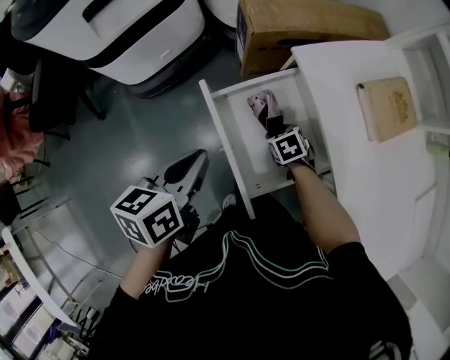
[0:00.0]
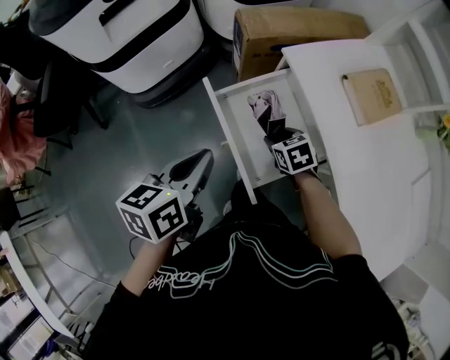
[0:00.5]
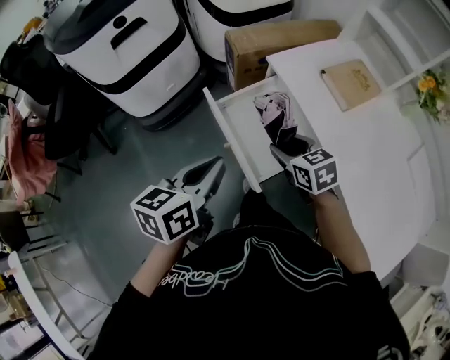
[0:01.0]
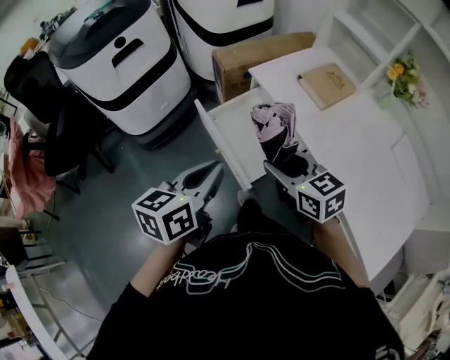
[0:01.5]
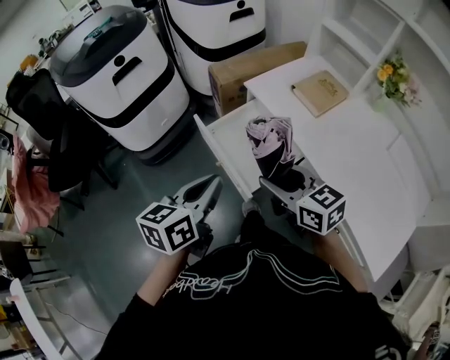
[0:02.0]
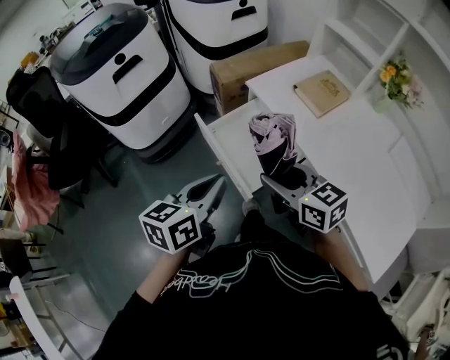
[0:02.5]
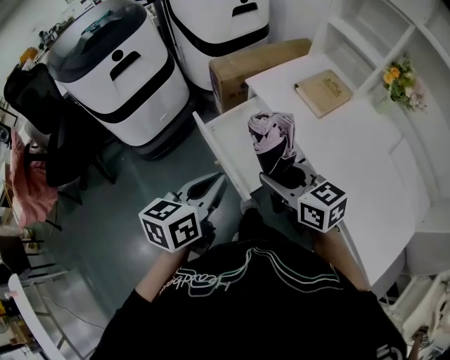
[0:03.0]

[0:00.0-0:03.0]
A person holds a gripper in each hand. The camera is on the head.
0:00.0 to 0:01.5: The right gripper goes approximately 40 cm upward and backward, and points its fingers some 40 degrees further upward. The left gripper is displaced backward and upward by some 25 cm, and turns by roughly 20 degrees.
0:01.5 to 0:03.0: The grippers move only a little.

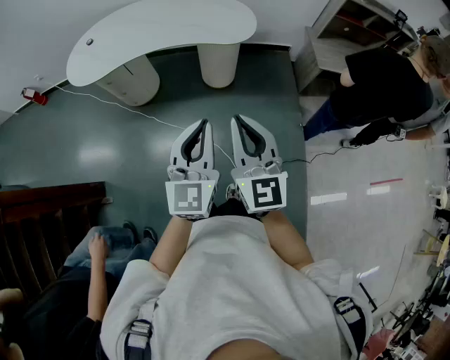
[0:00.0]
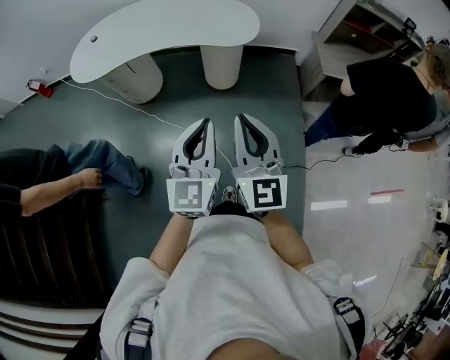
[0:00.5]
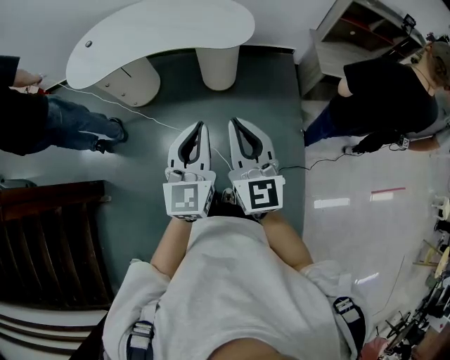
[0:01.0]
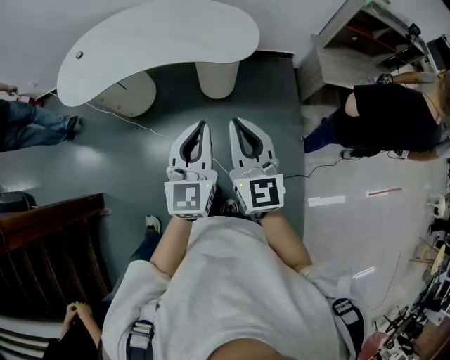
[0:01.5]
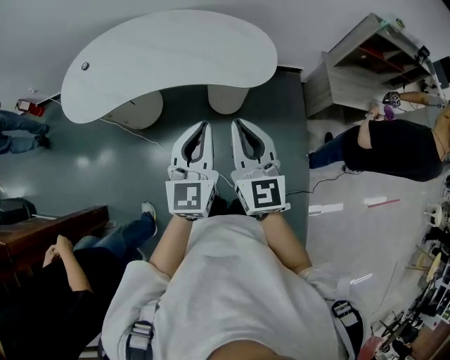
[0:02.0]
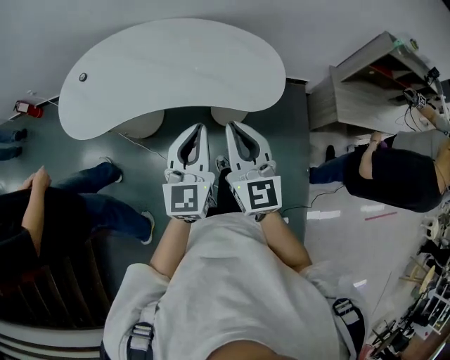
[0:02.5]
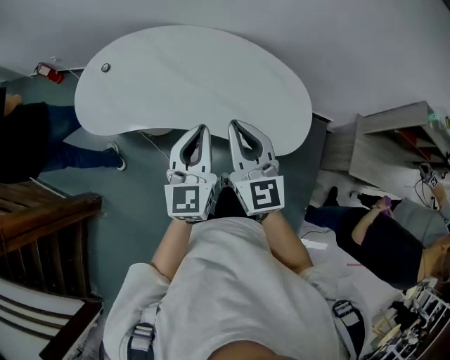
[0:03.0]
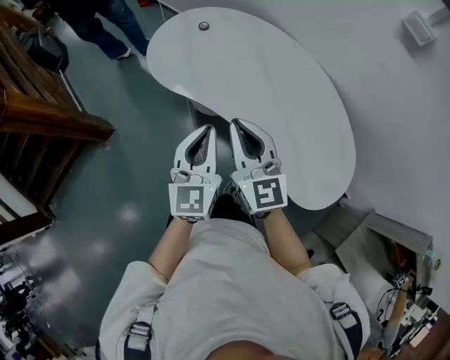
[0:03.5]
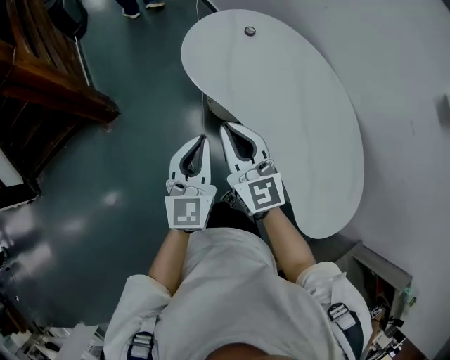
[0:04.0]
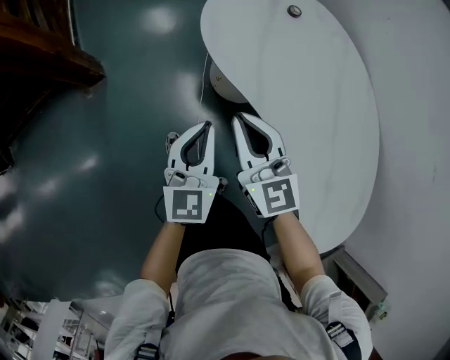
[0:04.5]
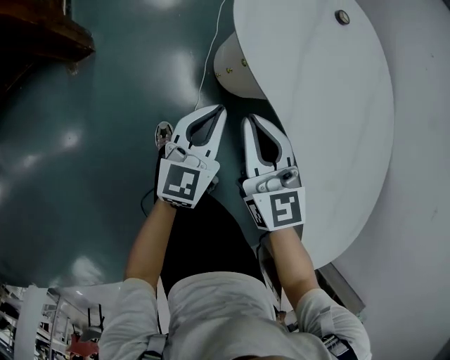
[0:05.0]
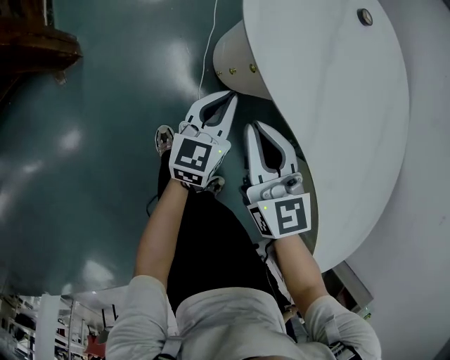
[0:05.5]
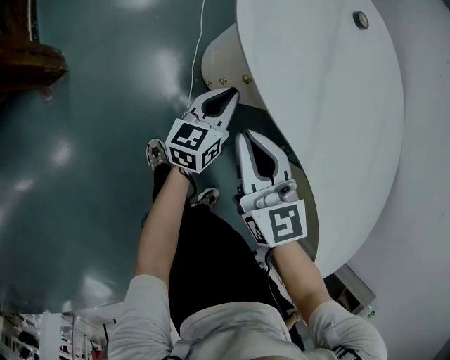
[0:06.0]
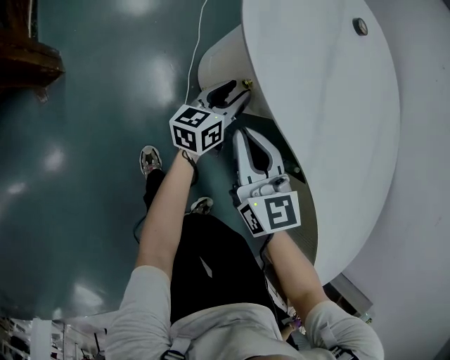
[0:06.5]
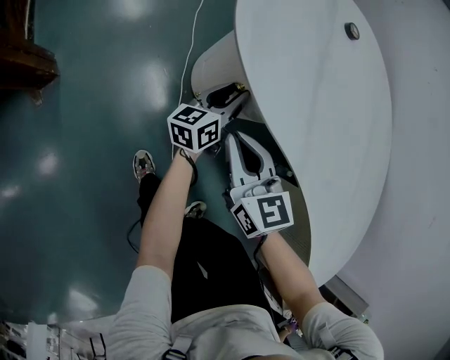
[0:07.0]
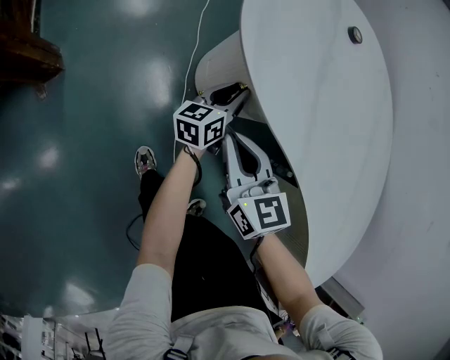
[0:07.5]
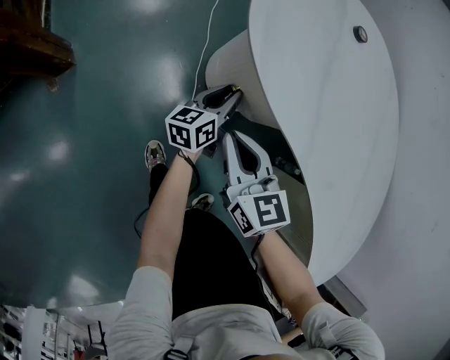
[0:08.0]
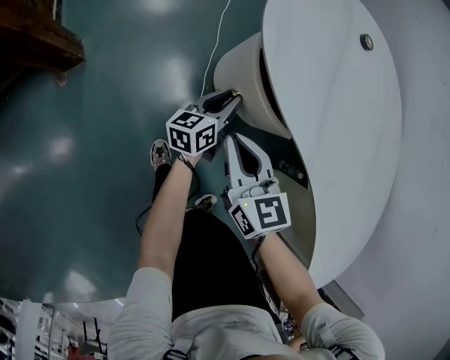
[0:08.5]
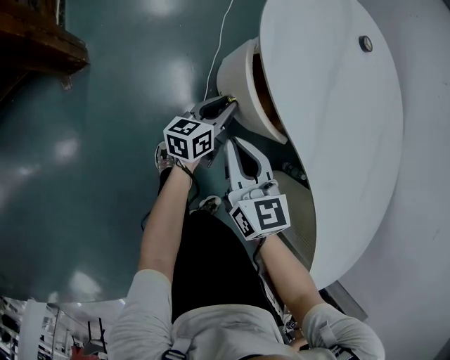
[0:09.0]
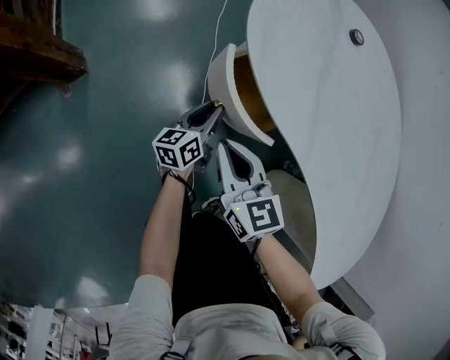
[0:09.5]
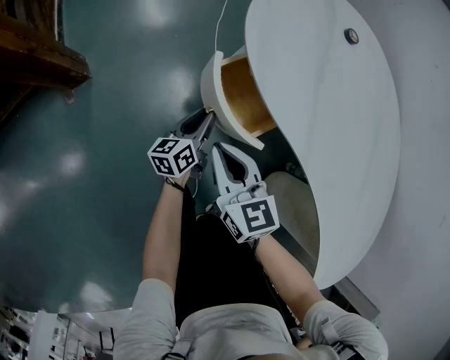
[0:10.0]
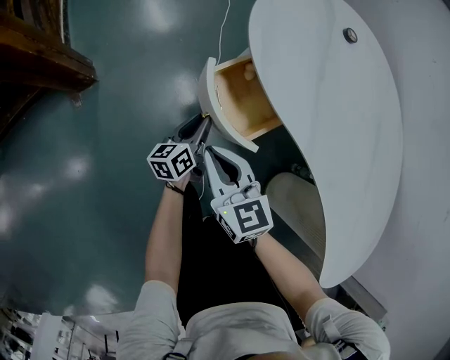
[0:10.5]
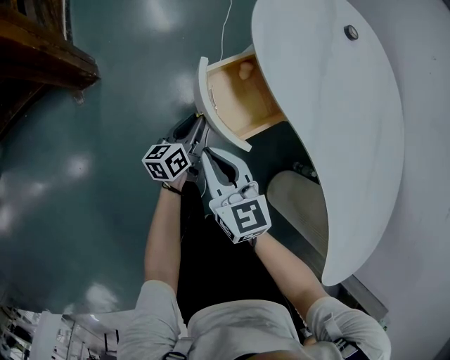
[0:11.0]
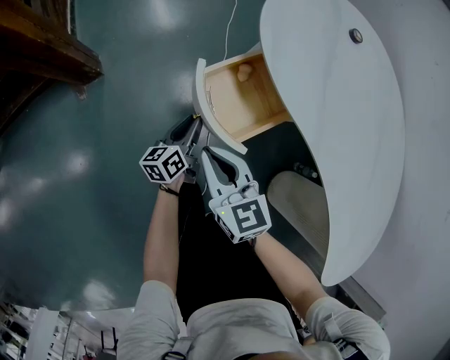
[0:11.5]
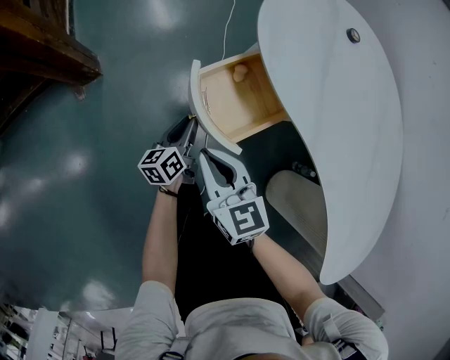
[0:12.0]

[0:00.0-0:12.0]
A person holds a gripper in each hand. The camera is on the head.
0:00.0 to 0:02.0: The two grippers go roughly 30 cm forward.
0:02.0 to 0:04.0: The right gripper ends up roughly 40 cm from where it was, and rotates approximately 70 degrees, while the left gripper changes place by some 35 cm, and changes its angle by some 60 degrees.
0:04.0 to 0:06.0: The grippers both shift downward and forward by some 40 cm. The left gripper swivels some 40 degrees.
0:06.0 to 0:08.0: The left gripper opens its fingers.
0:08.0 to 0:10.0: The left gripper is displaced to the left and backward by about 10 cm. The right gripper shifts by roughly 5 cm.
0:10.0 to 0:12.0: Both grippers travel together to the left, some 5 cm.

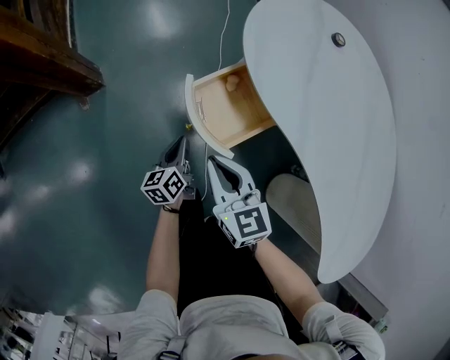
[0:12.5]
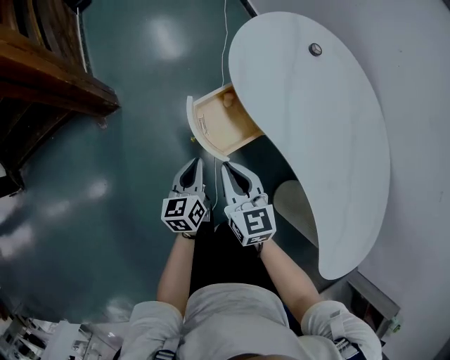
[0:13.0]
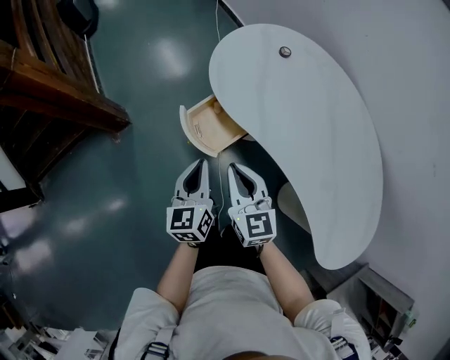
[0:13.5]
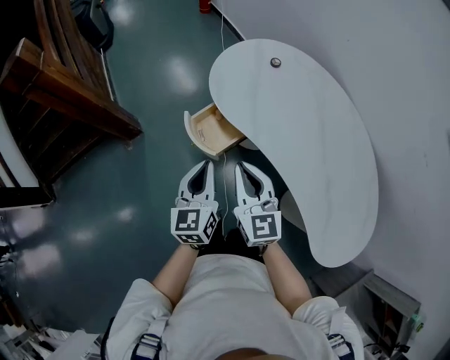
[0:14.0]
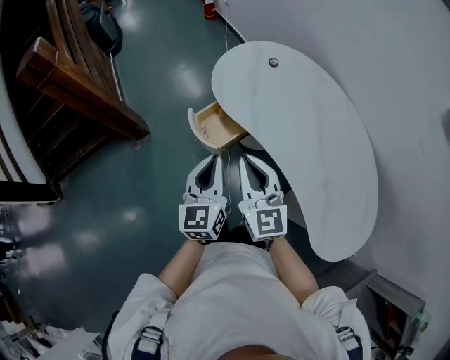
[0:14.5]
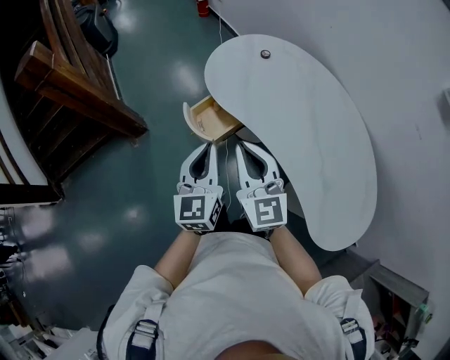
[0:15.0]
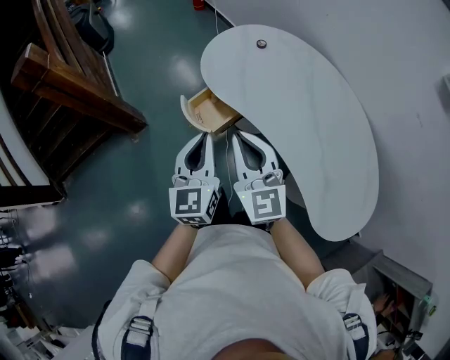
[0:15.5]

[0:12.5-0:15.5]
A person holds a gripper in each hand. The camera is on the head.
0:12.5 to 0:14.0: The right gripper shifts roughly 30 cm upward and to the right, and changes its angle by roughly 20 degrees. The left gripper shifts approximately 40 cm upward, and changes its angle by about 30 degrees.
0:14.0 to 0:15.5: The right gripper moves upward and backward, approximately 10 cm. The left gripper heads upward, covering some 10 cm.

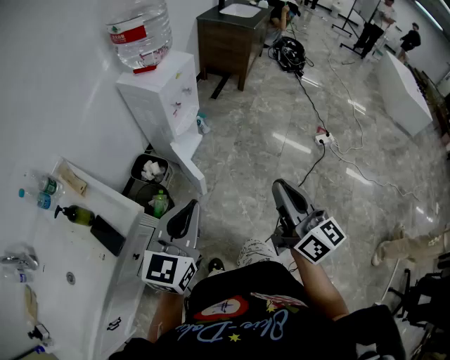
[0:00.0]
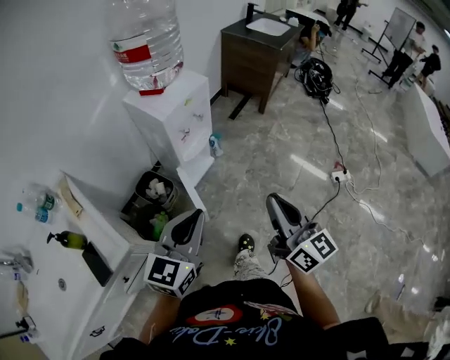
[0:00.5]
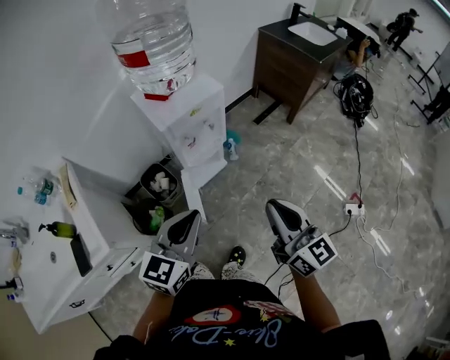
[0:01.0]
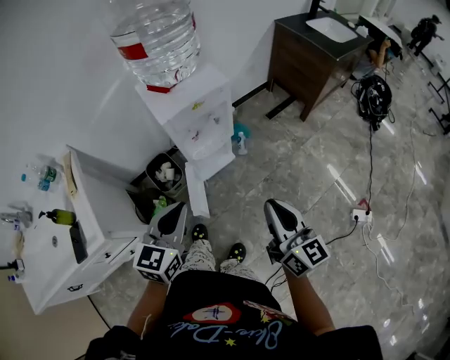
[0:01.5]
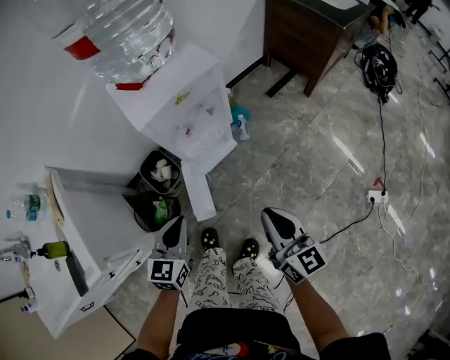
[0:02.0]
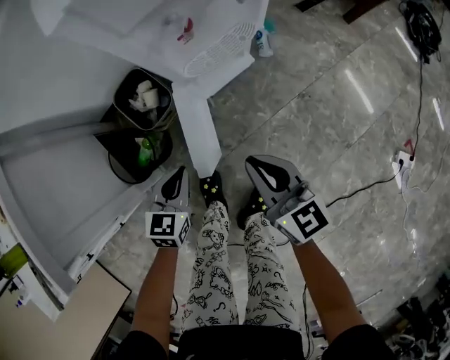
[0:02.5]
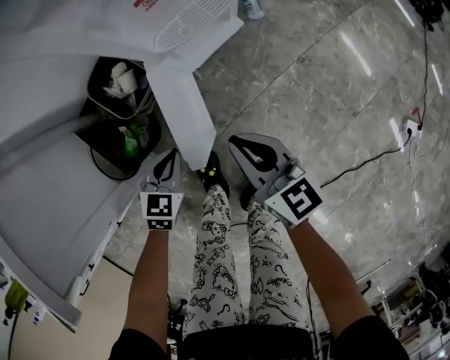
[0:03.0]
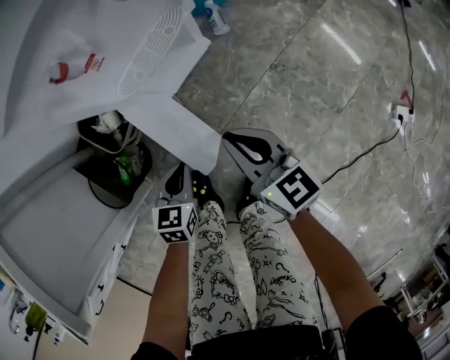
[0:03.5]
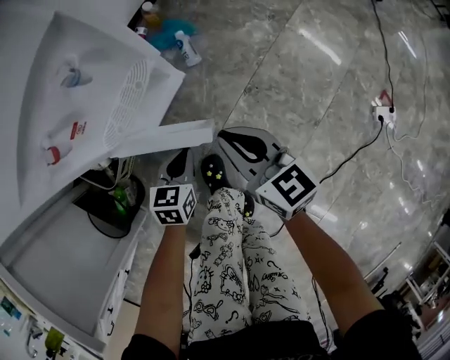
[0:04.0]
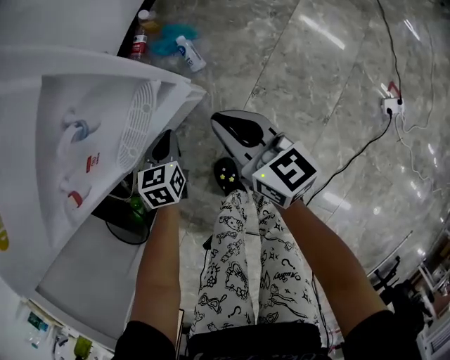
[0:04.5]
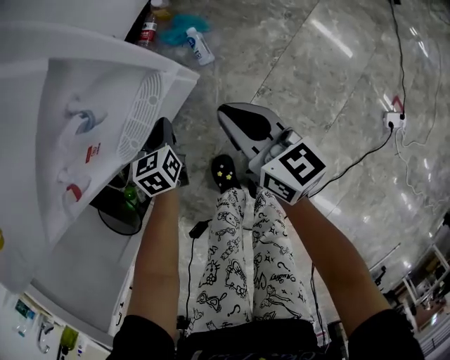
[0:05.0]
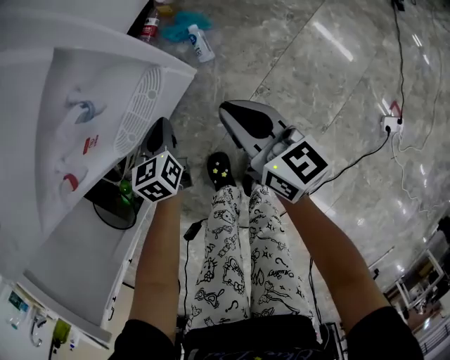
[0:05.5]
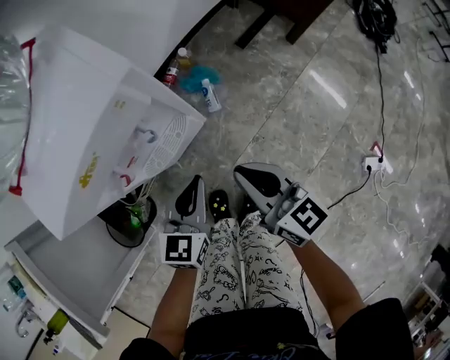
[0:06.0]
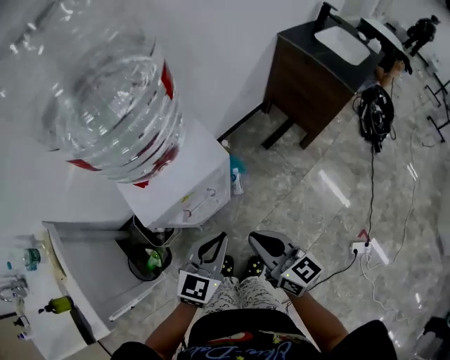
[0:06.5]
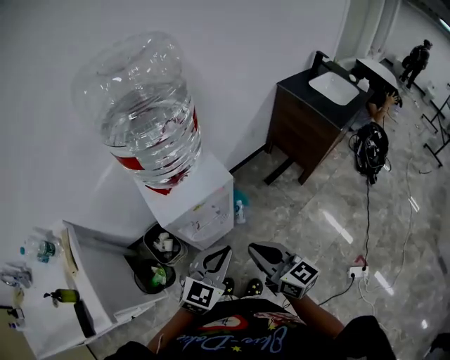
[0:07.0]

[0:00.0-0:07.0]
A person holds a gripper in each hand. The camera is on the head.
0:00.0 to 0:02.0: The left gripper moves approximately 40 cm, and swivels roughly 40 degrees; the right gripper moves roughly 40 cm, and swivels approximately 30 degrees.
0:02.0 to 0:03.5: The two grippers go some 35 cm downward. The left gripper swivels roughly 30 degrees.
0:03.5 to 0:05.0: The right gripper heads forward and to the right, covering some 20 cm. The left gripper moves forward, approximately 25 cm.
0:05.0 to 0:07.0: The grippers both shift upward by some 40 cm. The right gripper turns by some 20 degrees. The left gripper tips its fingers upward by approximately 30 degrees.

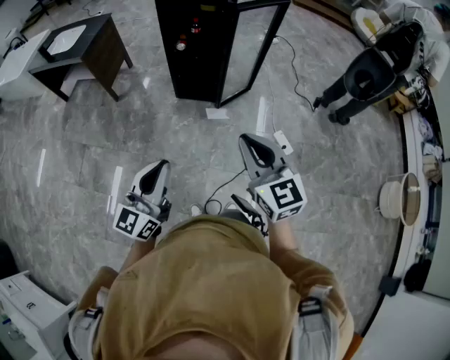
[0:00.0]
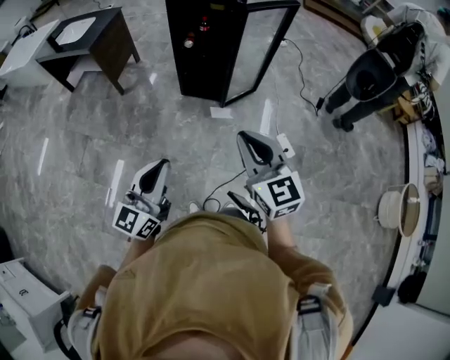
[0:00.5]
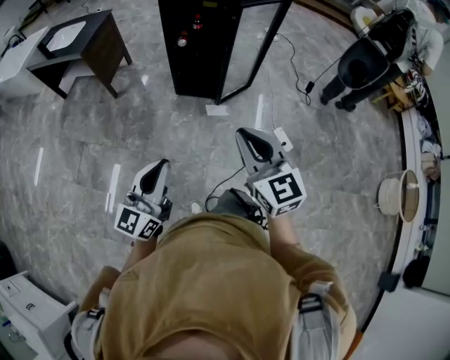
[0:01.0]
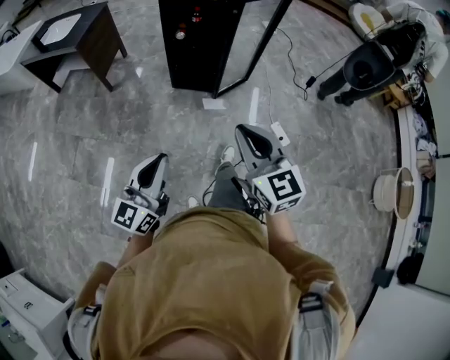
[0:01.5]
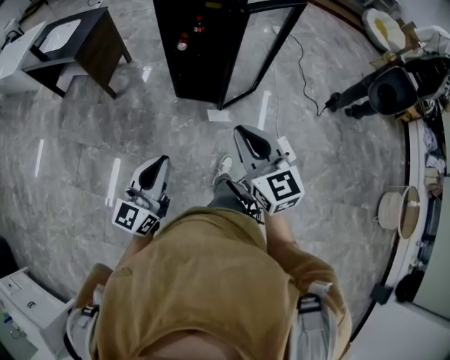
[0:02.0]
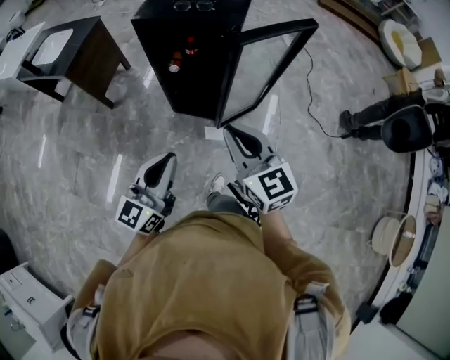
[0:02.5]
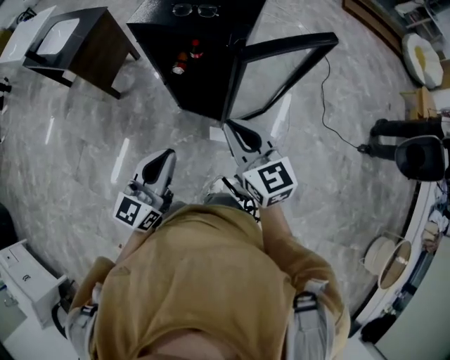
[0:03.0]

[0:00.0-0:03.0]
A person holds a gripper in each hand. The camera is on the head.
0:00.0 to 0:01.5: The grippers make only small movements.
0:01.5 to 0:03.0: The two grippers travel together, forward, about 50 cm.
